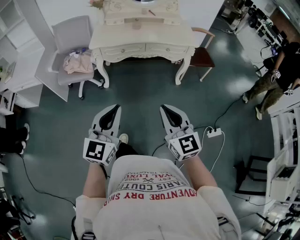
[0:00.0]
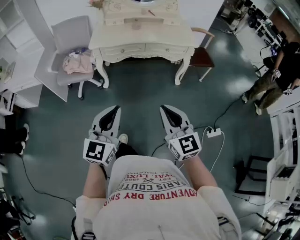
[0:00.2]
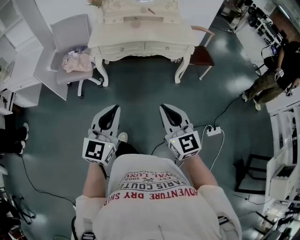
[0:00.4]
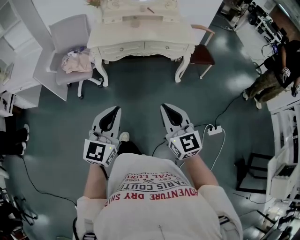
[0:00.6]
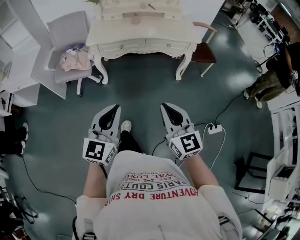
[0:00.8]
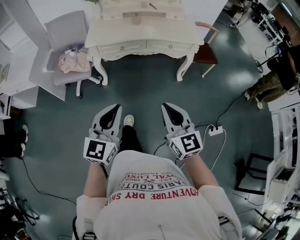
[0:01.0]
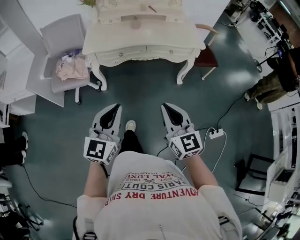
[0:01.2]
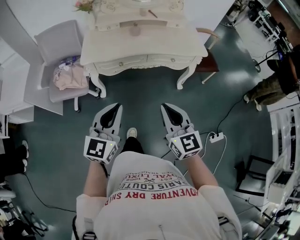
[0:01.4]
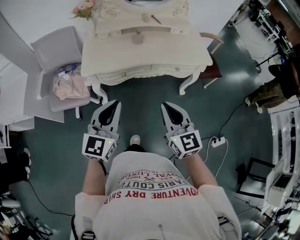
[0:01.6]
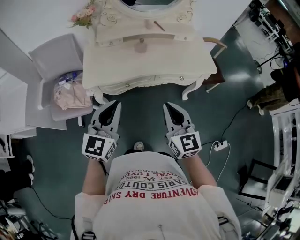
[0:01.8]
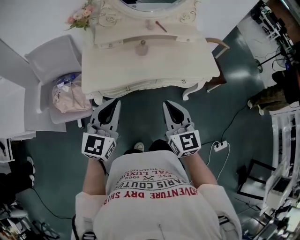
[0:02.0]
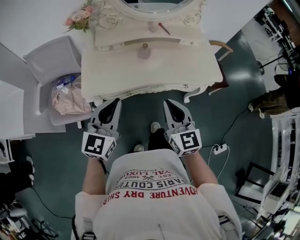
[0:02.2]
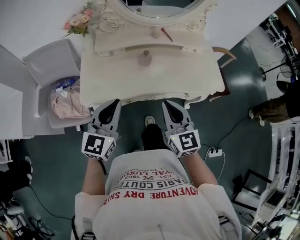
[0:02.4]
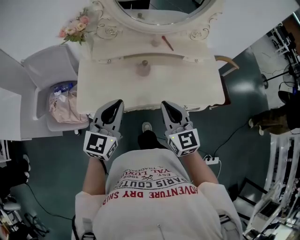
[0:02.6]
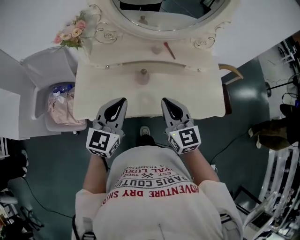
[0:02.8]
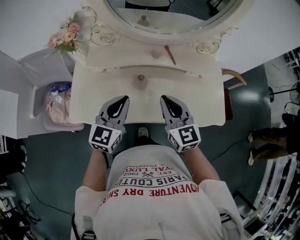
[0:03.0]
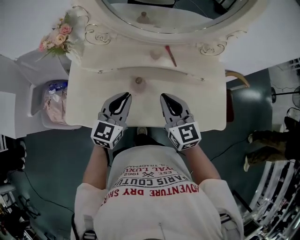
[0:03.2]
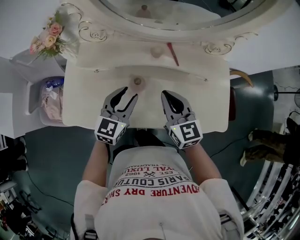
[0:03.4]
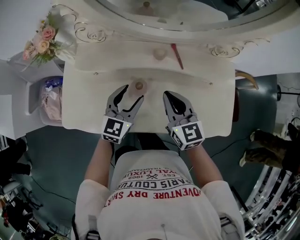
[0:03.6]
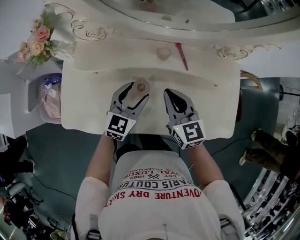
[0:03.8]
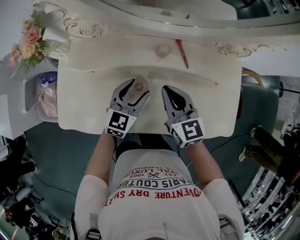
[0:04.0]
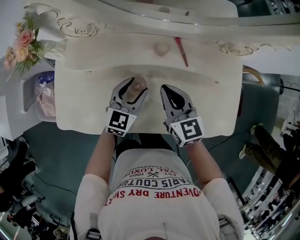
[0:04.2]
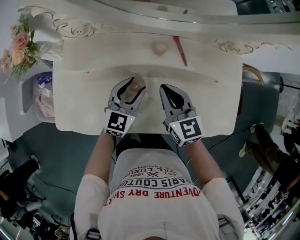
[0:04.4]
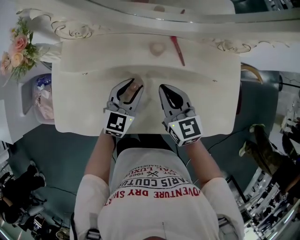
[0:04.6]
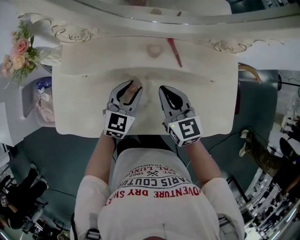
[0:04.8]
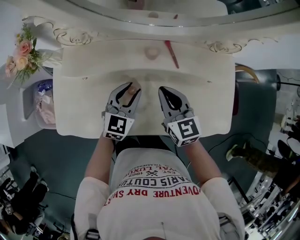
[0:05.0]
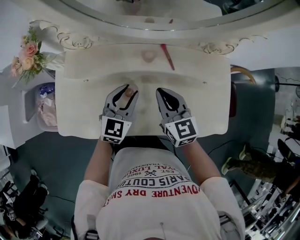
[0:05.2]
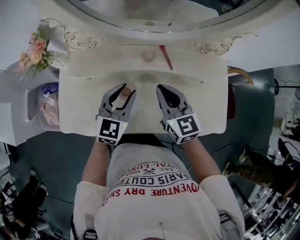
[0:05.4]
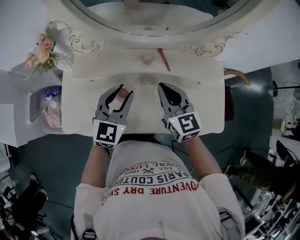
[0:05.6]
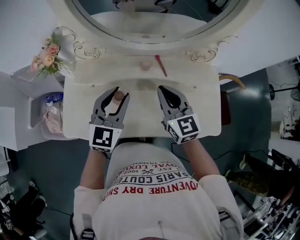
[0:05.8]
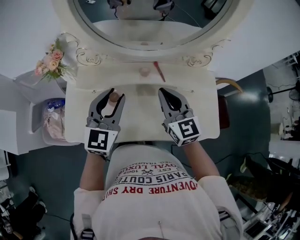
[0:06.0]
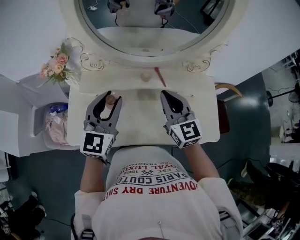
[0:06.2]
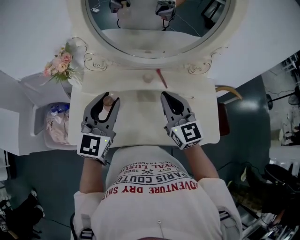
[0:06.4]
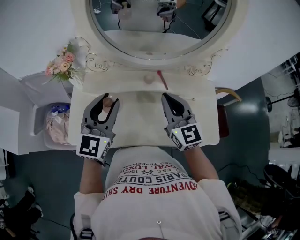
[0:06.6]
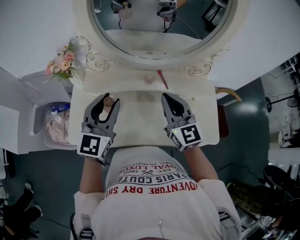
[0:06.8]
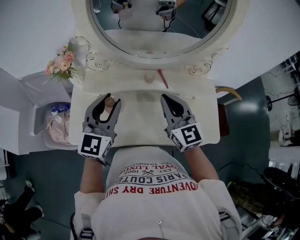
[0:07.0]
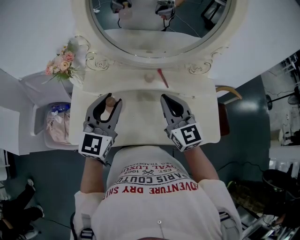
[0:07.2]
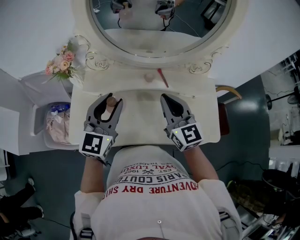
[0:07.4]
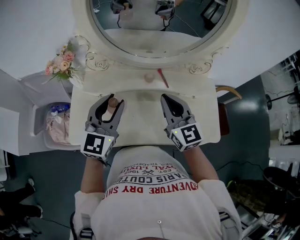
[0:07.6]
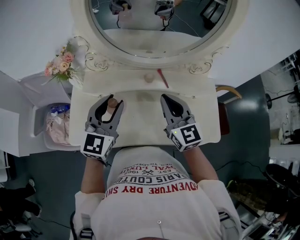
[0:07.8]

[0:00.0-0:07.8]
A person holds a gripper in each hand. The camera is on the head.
0:00.0 to 0:01.6: The two grippers go about 35 cm forward.
0:01.6 to 0:03.2: The pair of grippers is taken forward, approximately 50 cm.
0:03.2 to 0:04.6: The grippers both shift downward and forward by about 15 cm. The left gripper opens.
0:04.6 to 0:06.2: Both grippers move upward, roughly 20 cm.
0:06.2 to 0:07.8: There are only small adjustments of the grippers.

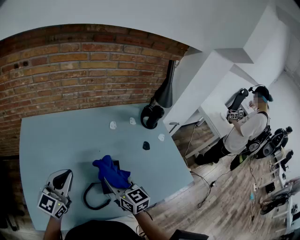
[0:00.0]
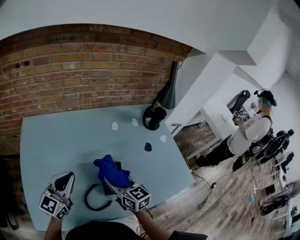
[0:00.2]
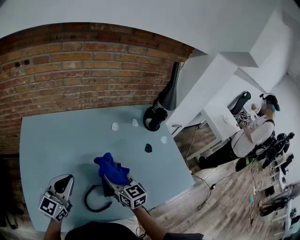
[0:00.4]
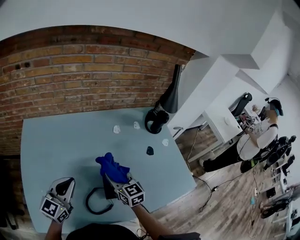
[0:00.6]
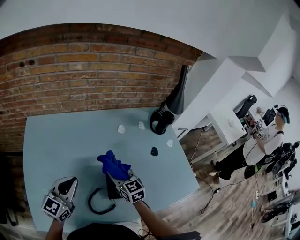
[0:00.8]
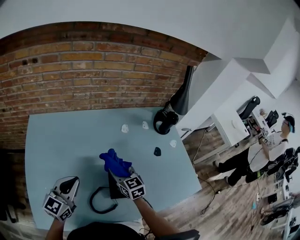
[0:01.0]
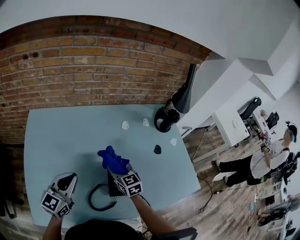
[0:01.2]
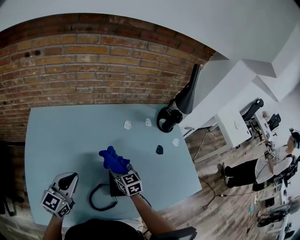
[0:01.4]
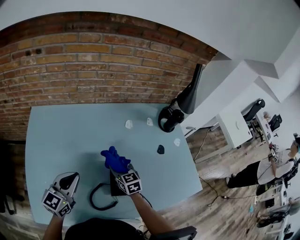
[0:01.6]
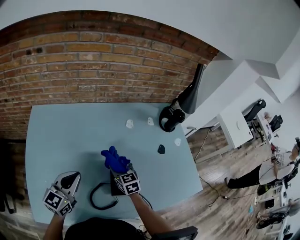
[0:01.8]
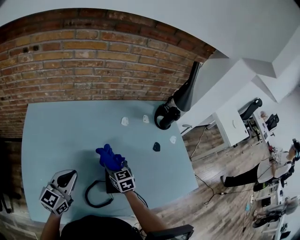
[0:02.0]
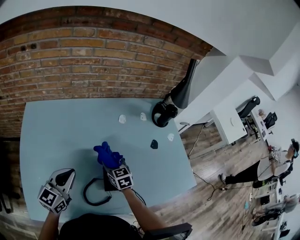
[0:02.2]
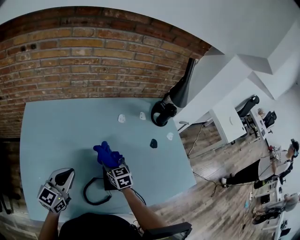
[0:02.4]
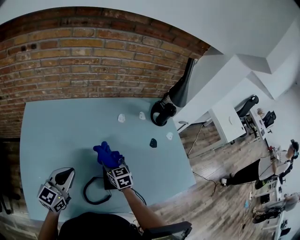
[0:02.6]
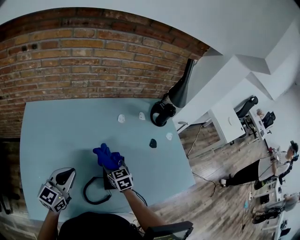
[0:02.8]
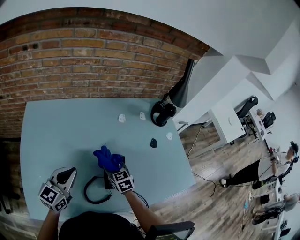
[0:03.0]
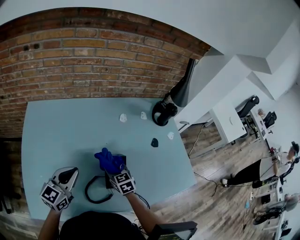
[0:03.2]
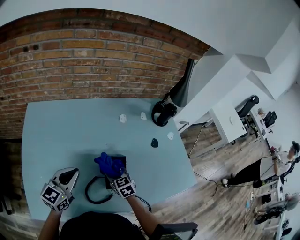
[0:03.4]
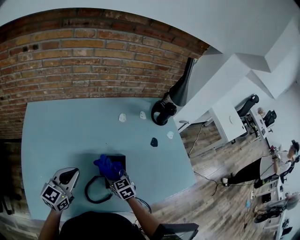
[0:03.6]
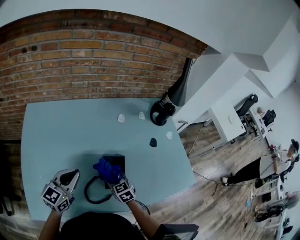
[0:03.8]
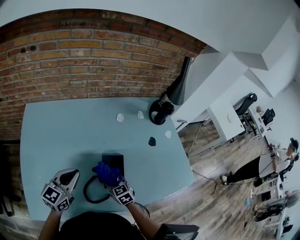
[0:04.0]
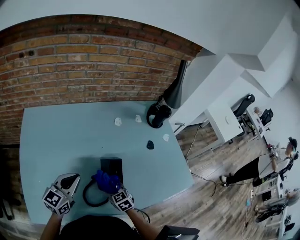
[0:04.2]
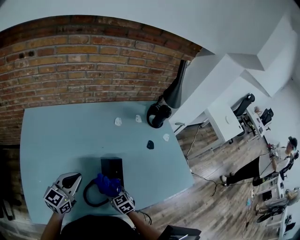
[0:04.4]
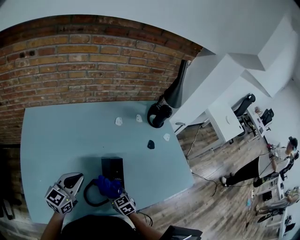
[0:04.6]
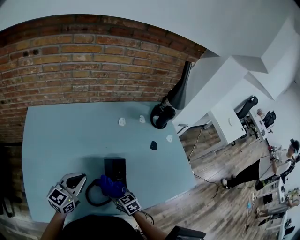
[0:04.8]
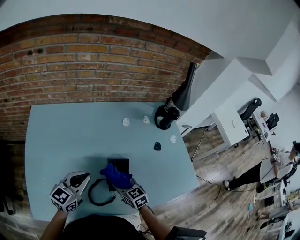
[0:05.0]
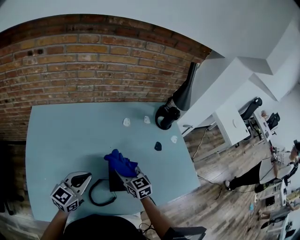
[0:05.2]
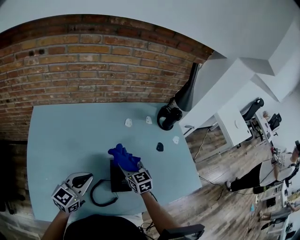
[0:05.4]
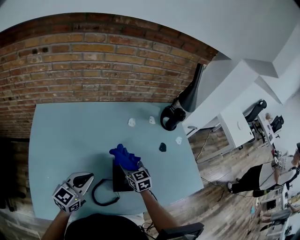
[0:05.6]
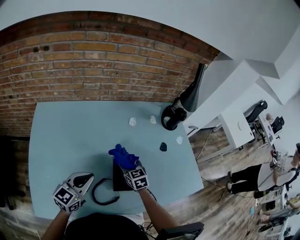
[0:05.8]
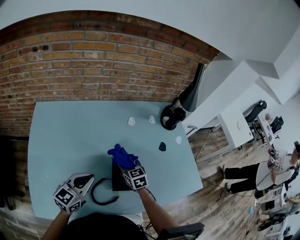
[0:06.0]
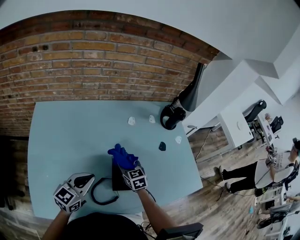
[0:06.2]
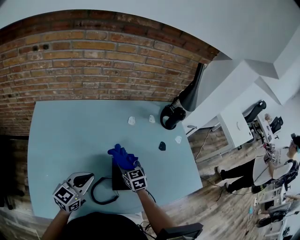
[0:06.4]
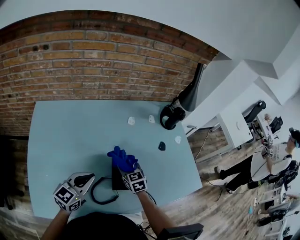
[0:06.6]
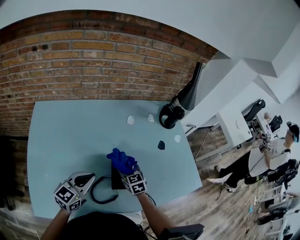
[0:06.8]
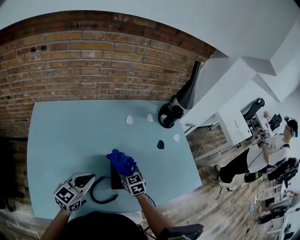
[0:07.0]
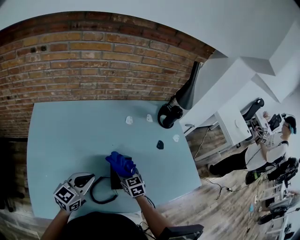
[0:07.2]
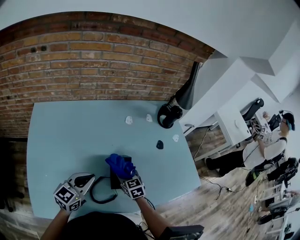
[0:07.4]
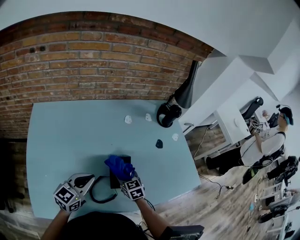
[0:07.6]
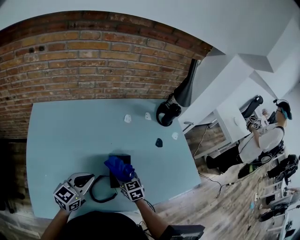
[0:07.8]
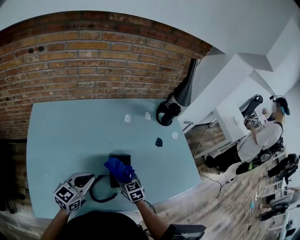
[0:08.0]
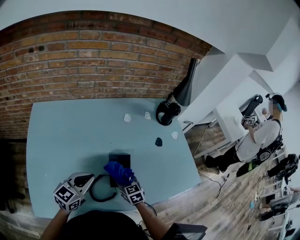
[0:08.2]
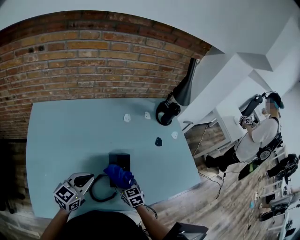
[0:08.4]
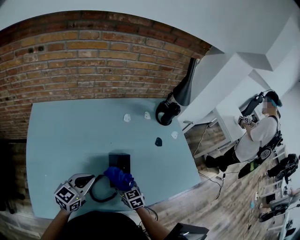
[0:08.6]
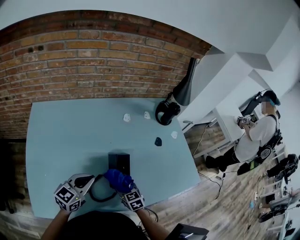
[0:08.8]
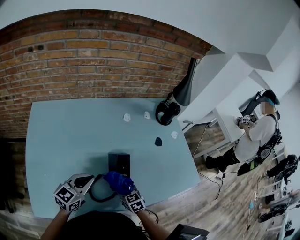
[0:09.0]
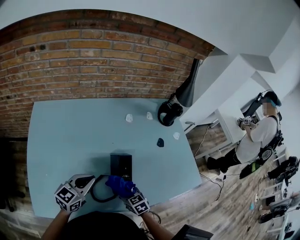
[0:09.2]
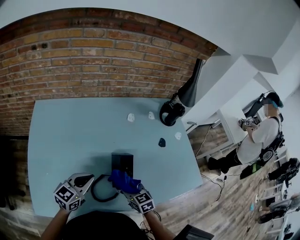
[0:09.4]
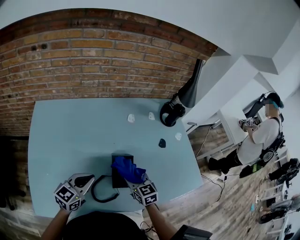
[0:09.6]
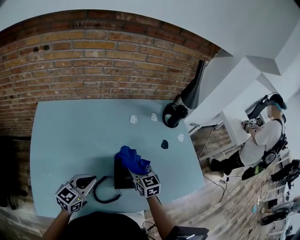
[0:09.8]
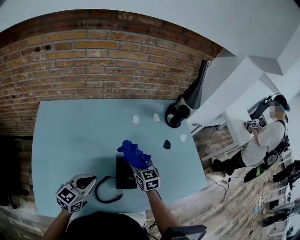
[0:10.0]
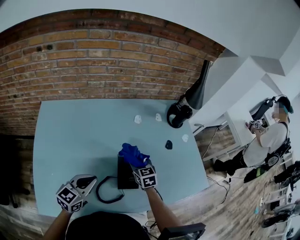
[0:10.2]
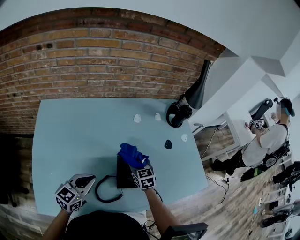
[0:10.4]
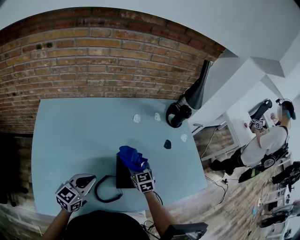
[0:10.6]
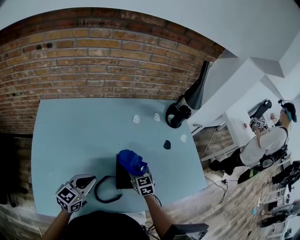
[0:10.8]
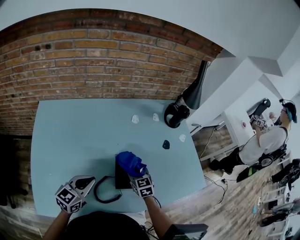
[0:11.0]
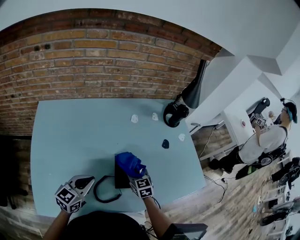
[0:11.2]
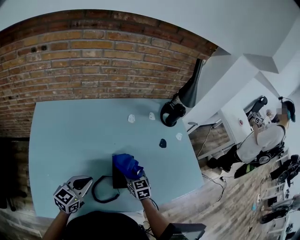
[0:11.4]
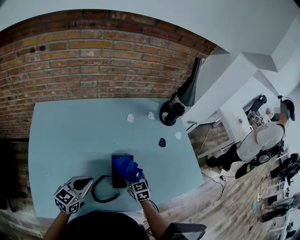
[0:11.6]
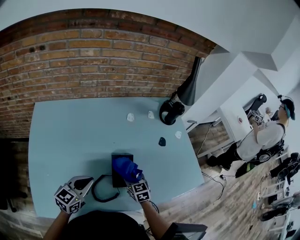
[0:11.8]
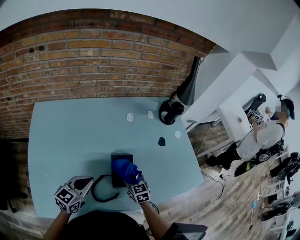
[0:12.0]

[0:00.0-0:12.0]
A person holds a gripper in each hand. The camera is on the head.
0:00.0 to 0:01.6: The right gripper moves downward and forward, about 15 cm. Meanwhile the left gripper shifts about 5 cm downward.
0:01.6 to 0:03.0: The grippers make only small movements.
0:03.0 to 0:04.4: The right gripper is displaced backward and downward by about 15 cm.
0:04.4 to 0:06.0: The right gripper moves forward and upward, approximately 15 cm.
0:06.0 to 0:07.6: The right gripper shifts about 5 cm backward.
0:07.6 to 0:09.0: The right gripper is displaced backward by some 10 cm.
0:09.0 to 0:10.4: The right gripper travels forward and upward by some 15 cm.
0:10.4 to 0:12.0: The right gripper moves backward, roughly 10 cm.

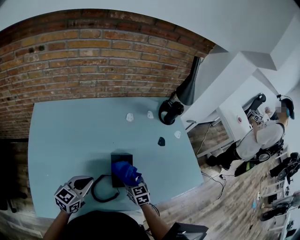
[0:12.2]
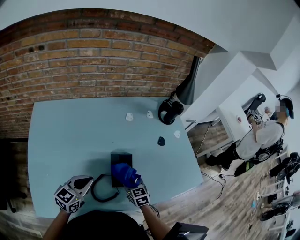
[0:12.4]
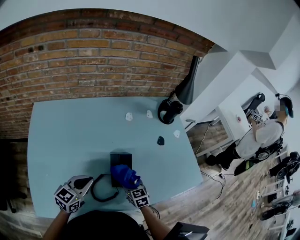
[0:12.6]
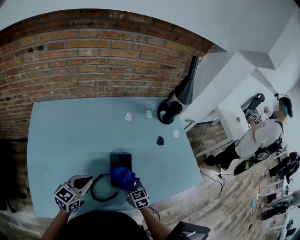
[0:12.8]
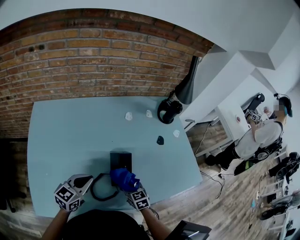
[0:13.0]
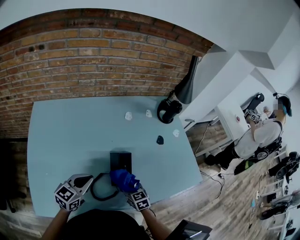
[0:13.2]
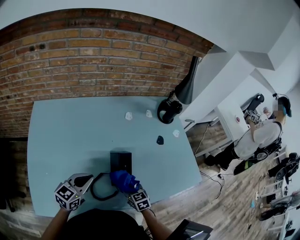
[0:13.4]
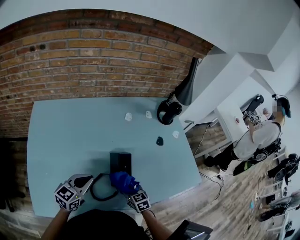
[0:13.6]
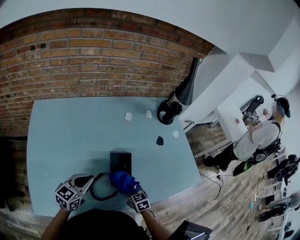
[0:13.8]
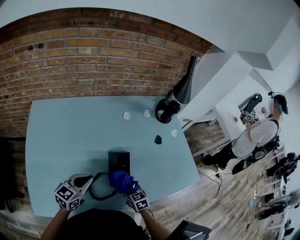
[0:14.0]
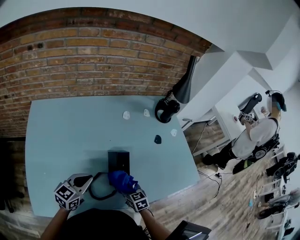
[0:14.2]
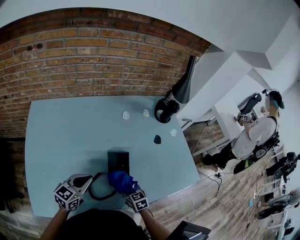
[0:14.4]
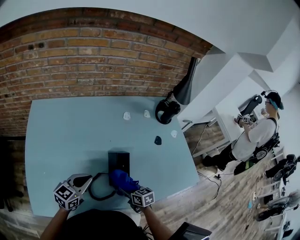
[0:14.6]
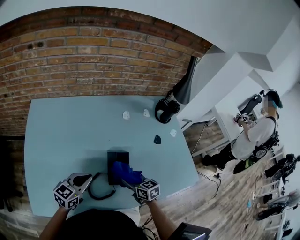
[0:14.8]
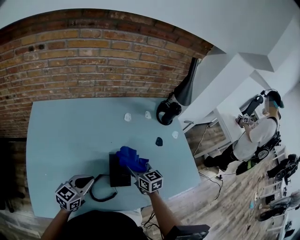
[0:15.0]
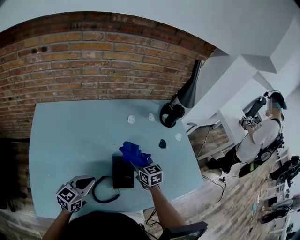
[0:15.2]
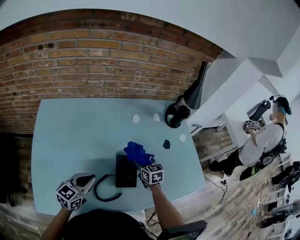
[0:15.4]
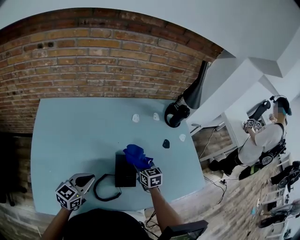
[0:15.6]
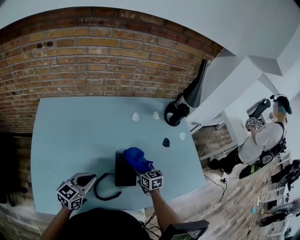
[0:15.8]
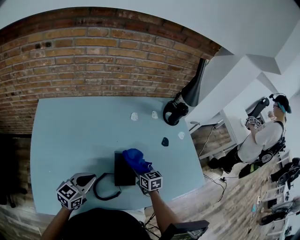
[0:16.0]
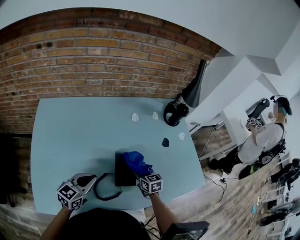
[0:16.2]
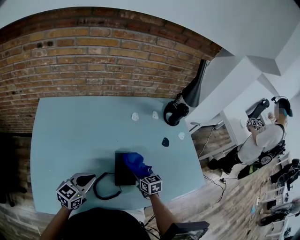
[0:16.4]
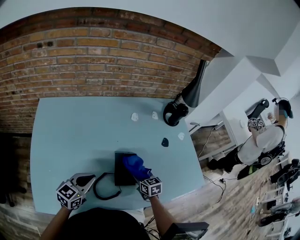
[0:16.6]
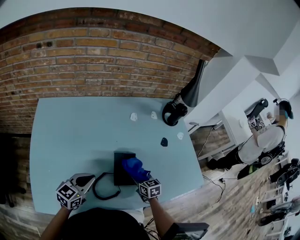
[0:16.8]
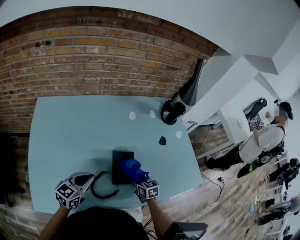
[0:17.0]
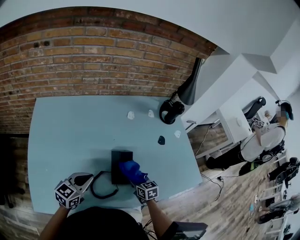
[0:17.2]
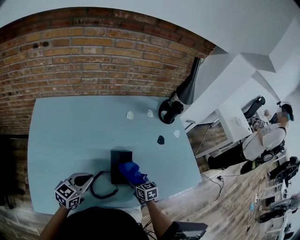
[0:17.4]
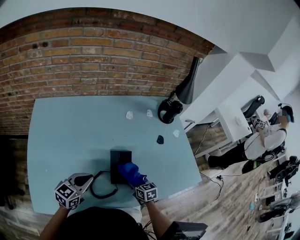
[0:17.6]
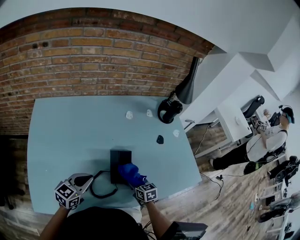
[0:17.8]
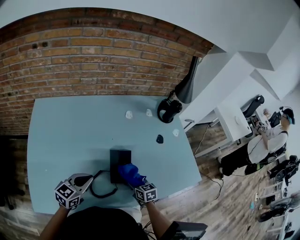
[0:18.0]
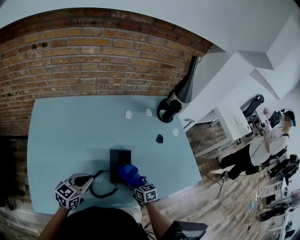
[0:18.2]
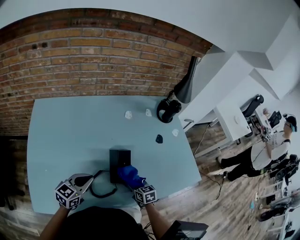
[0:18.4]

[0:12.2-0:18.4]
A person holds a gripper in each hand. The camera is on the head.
0:12.2 to 0:13.8: The right gripper goes some 5 cm backward.
0:13.8 to 0:15.4: The right gripper moves forward and upward, approximately 20 cm.
0:15.4 to 0:16.8: The right gripper goes approximately 10 cm backward and downward.
0:16.8 to 0:18.4: The right gripper heads backward, covering about 5 cm.
